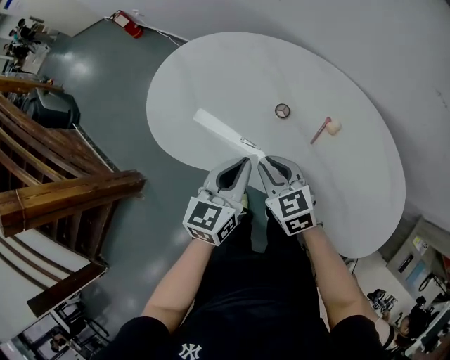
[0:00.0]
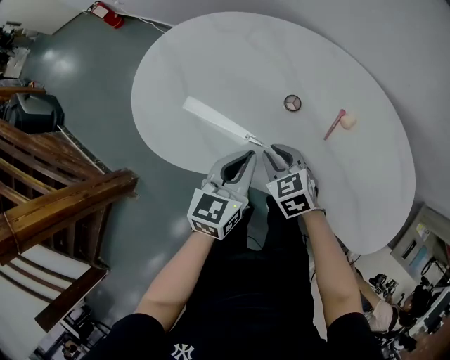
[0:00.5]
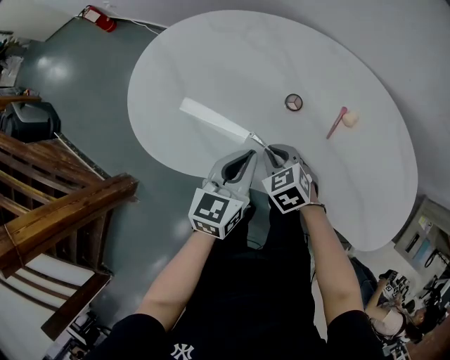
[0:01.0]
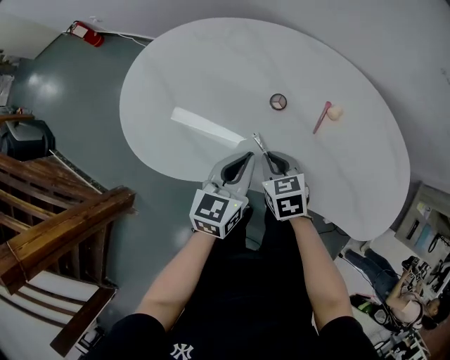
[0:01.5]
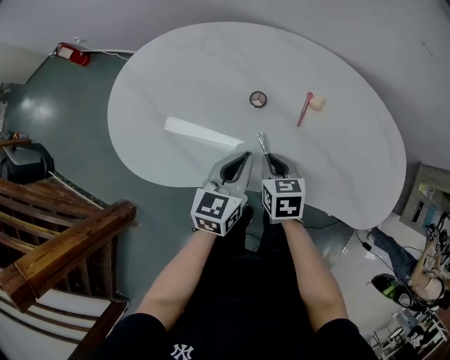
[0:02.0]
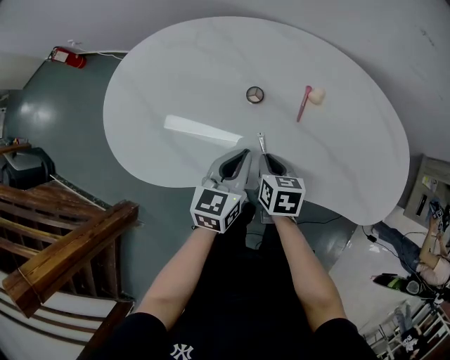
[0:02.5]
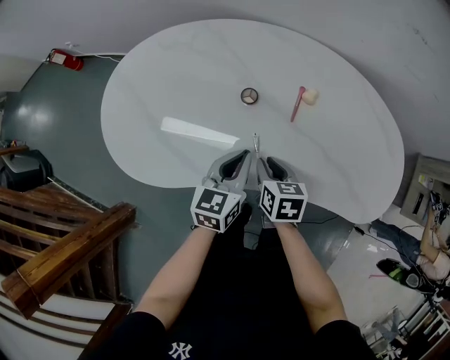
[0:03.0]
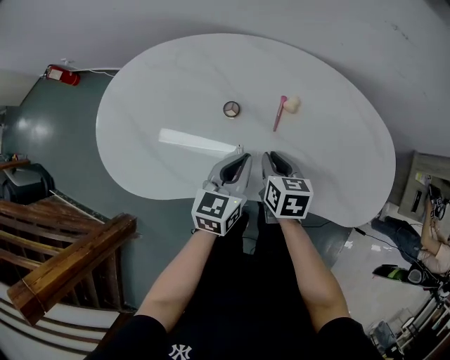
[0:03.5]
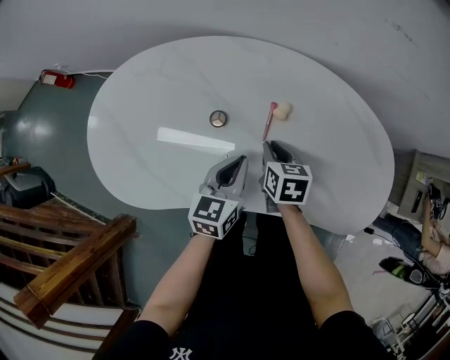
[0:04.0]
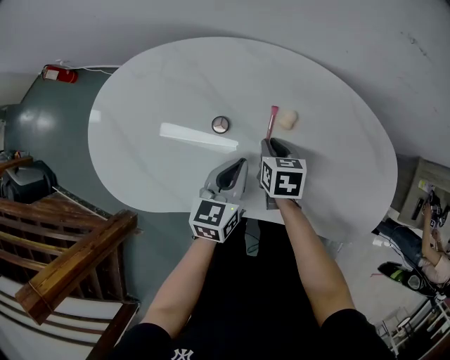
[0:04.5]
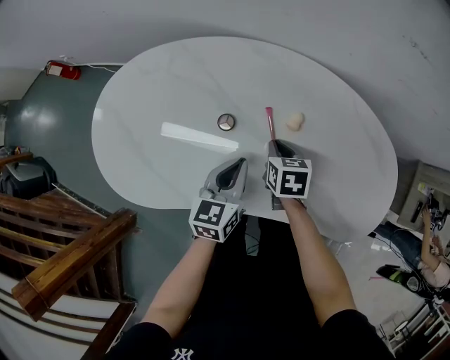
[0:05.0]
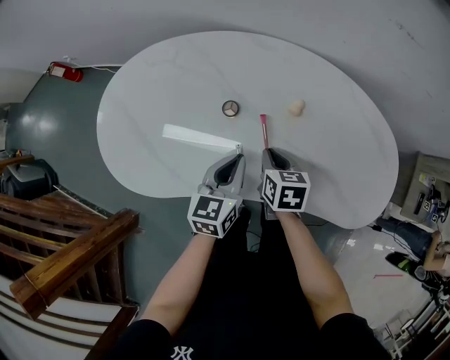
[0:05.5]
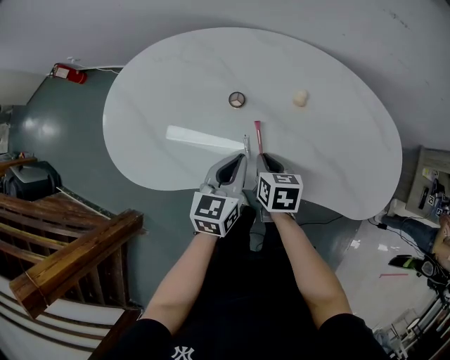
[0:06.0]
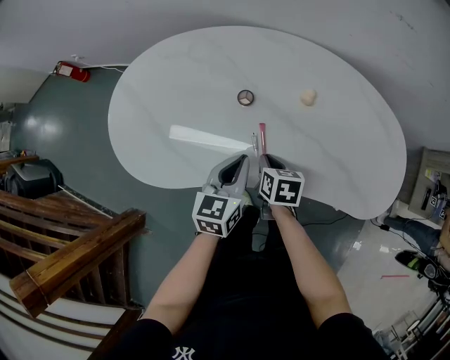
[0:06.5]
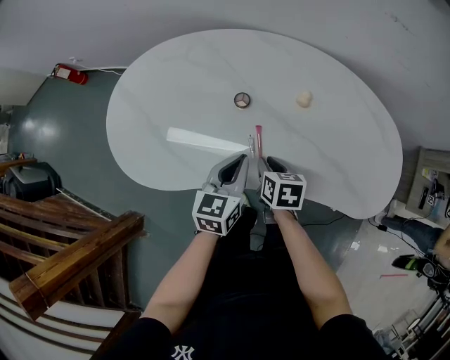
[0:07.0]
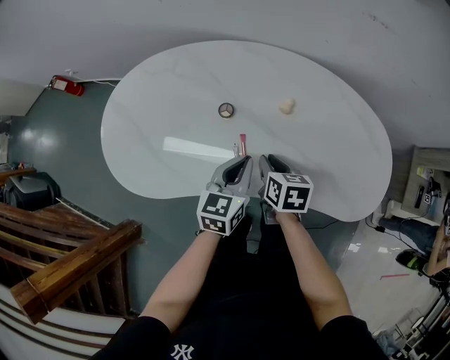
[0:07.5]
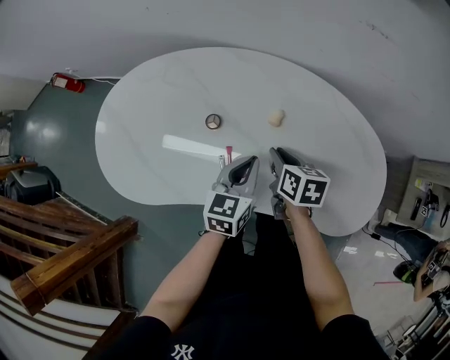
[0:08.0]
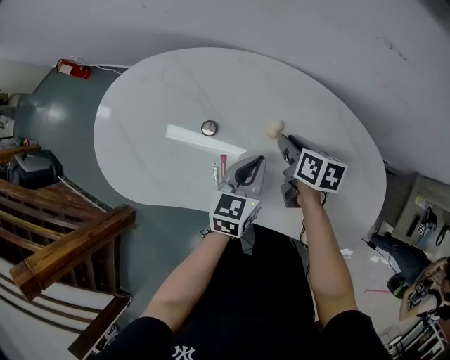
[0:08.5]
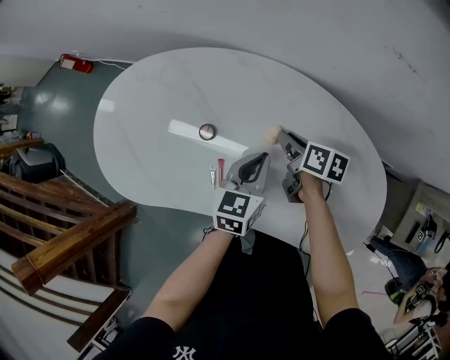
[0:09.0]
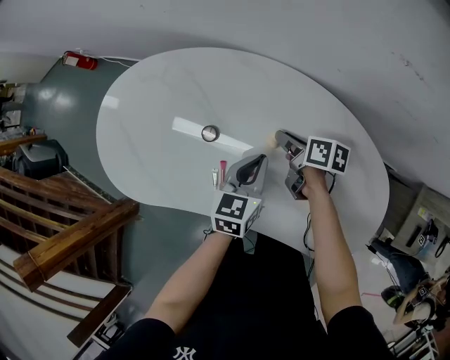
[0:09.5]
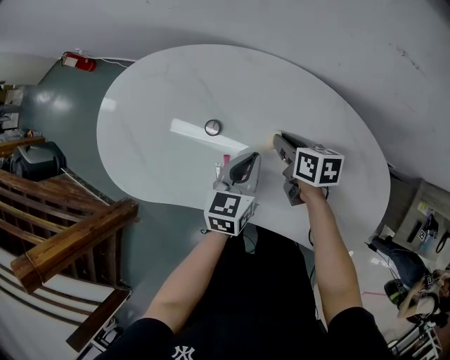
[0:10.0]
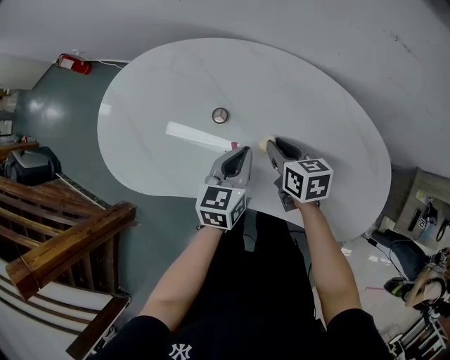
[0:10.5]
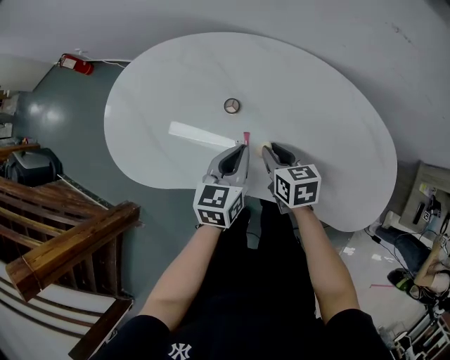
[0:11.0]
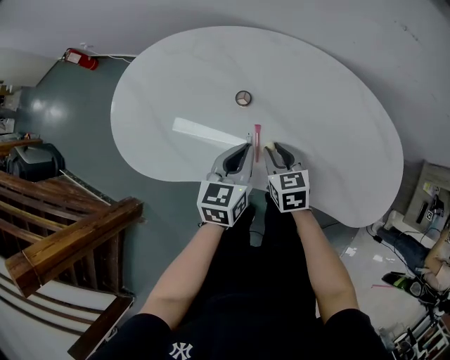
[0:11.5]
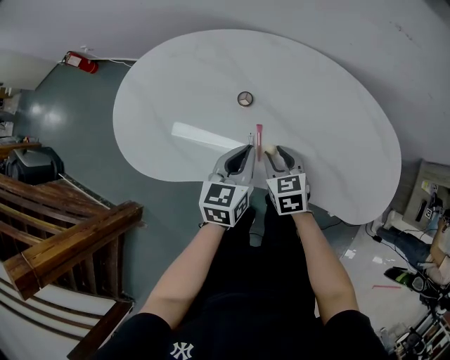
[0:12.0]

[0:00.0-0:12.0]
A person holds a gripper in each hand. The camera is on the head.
0:00.0 to 0:02.0: The two grippers go some 10 cm downward. The right gripper swivels approximately 40 degrees.
0:02.0 to 0:04.0: Both grippers travel together to the right and forward, approximately 10 cm.
0:04.0 to 0:06.0: The right gripper is displaced backward and to the left by roughly 10 cm, while the left gripper heads backward, covering approximately 5 cm.
0:06.0 to 0:08.0: The two grippers go approximately 15 cm to the right and forward.
0:08.0 to 0:10.0: The right gripper shifts about 10 cm forward. Meanwhile the left gripper is displaced forward by about 5 cm.
0:10.0 to 0:12.0: The left gripper shifts about 15 cm to the left and backward, while the right gripper moves backward and to the left, roughly 20 cm, and turns by approximately 40 degrees.

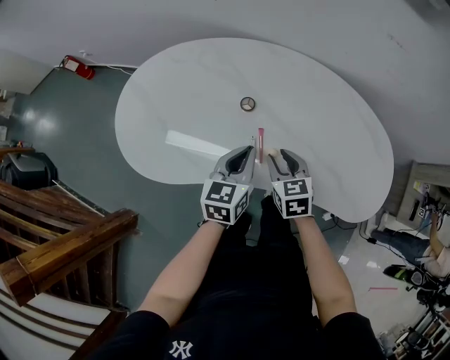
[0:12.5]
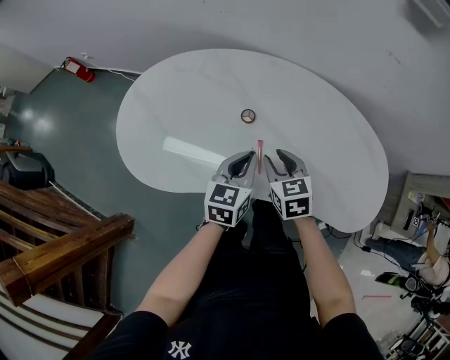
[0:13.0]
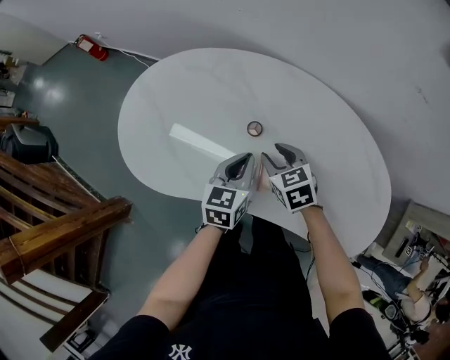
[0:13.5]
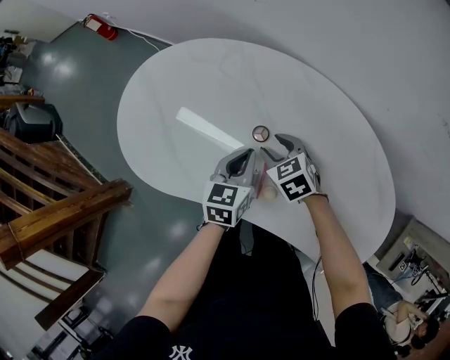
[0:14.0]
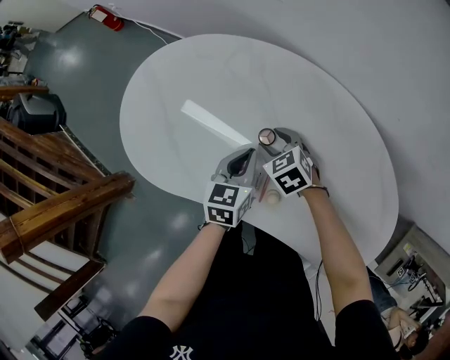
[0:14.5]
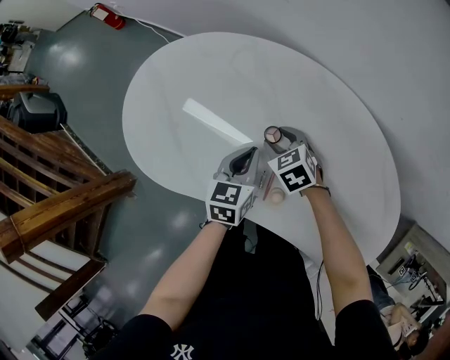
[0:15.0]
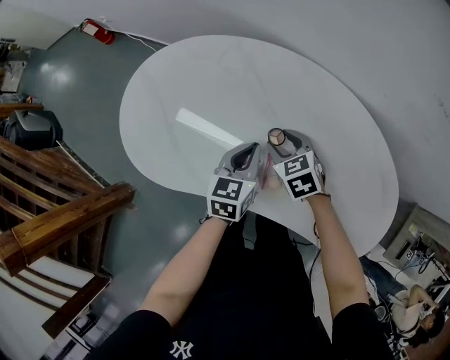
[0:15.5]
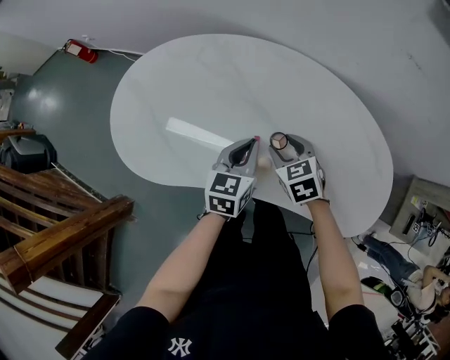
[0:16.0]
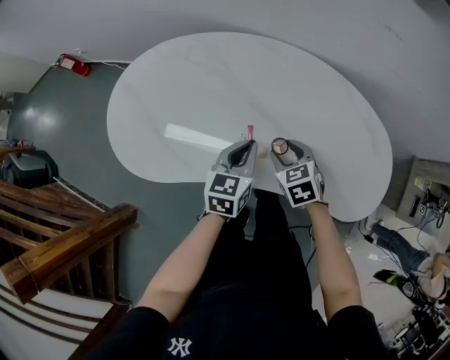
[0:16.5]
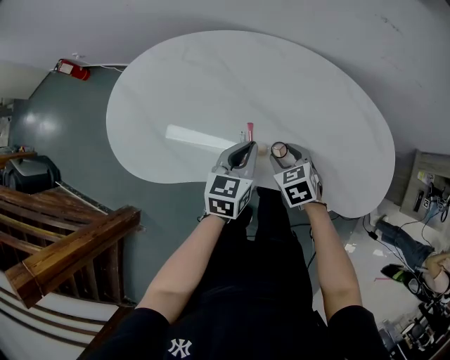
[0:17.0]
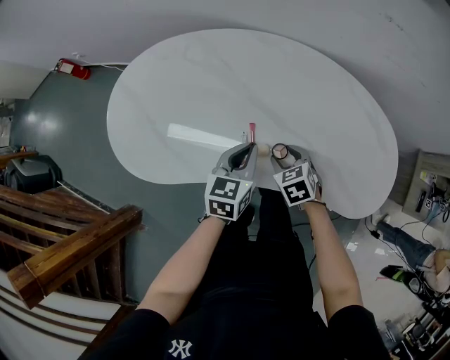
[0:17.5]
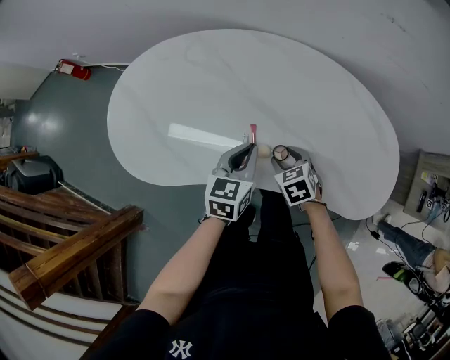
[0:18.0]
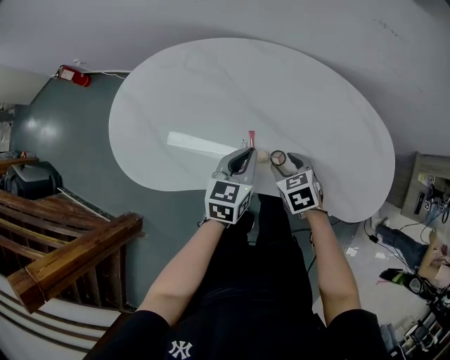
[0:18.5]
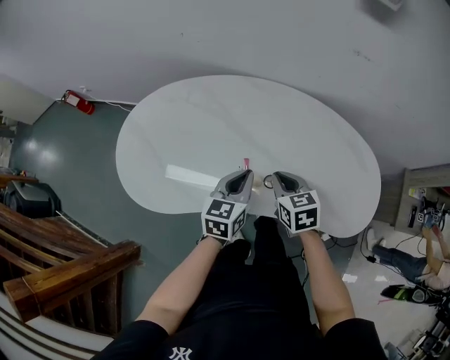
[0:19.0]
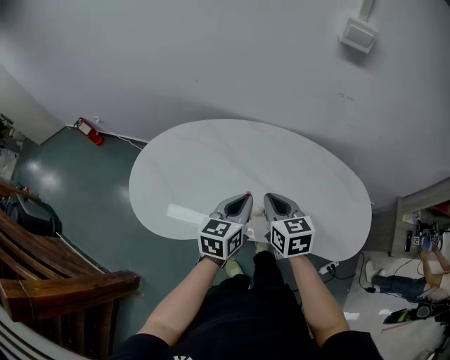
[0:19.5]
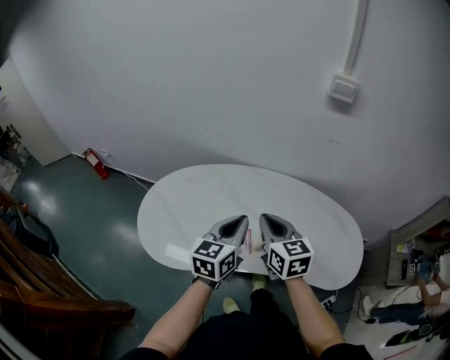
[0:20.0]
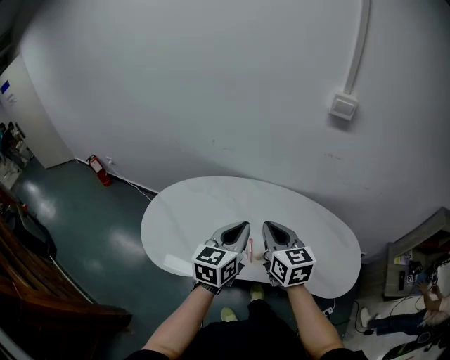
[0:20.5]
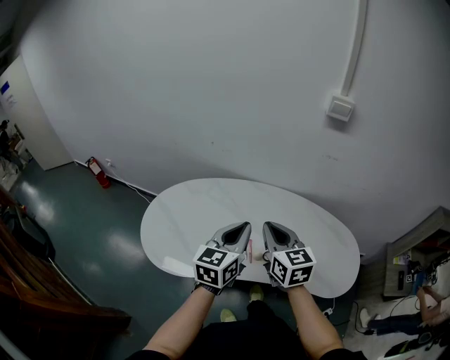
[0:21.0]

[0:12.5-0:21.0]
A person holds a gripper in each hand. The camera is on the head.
0:12.5 to 0:14.5: The left gripper changes place by approximately 15 cm. The right gripper ends up roughly 20 cm from where it was, and swivels about 40 degrees.
0:14.5 to 0:16.5: The left gripper goes some 10 cm backward and to the right, and rotates approximately 20 degrees, while the right gripper goes roughly 20 cm backward and to the right, and changes its angle by about 30 degrees.
0:16.5 to 0:19.0: The right gripper is displaced upward by some 5 cm, swivels about 20 degrees, and closes its fingers.
0:19.0 to 0:21.0: Both grippers travel together upward, some 25 cm. The right gripper swivels roughly 30 degrees.

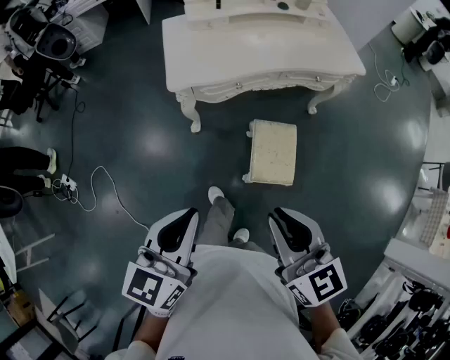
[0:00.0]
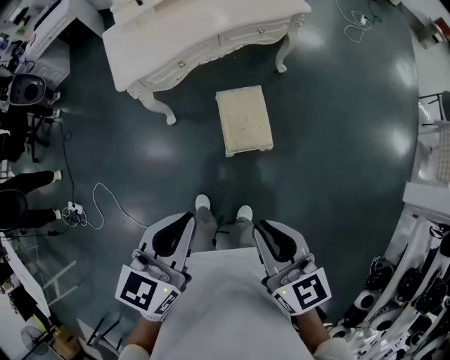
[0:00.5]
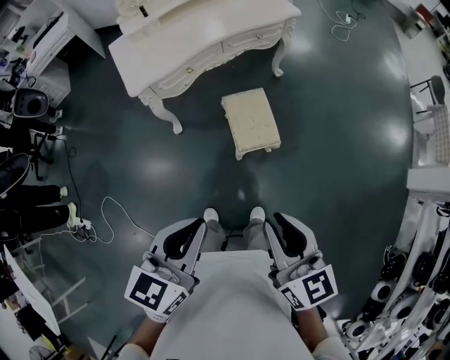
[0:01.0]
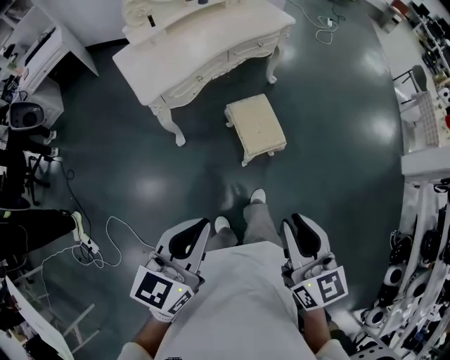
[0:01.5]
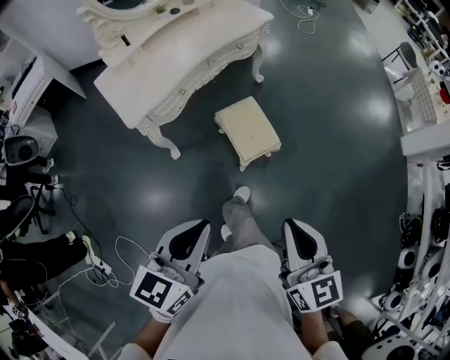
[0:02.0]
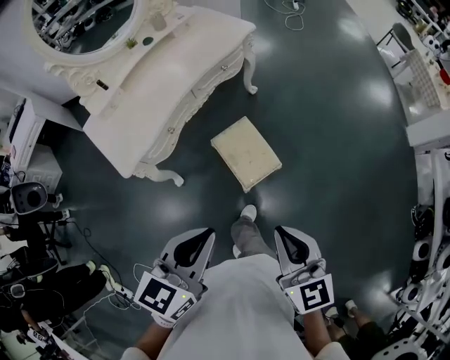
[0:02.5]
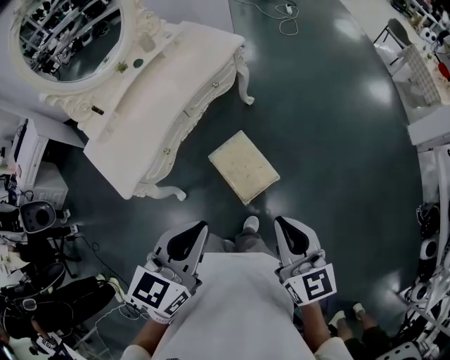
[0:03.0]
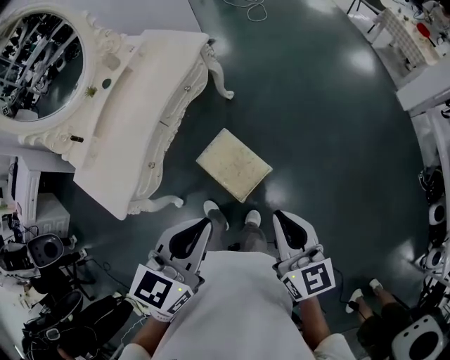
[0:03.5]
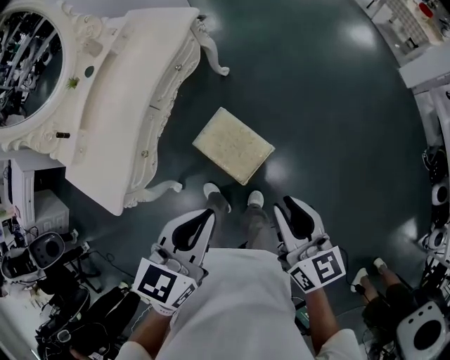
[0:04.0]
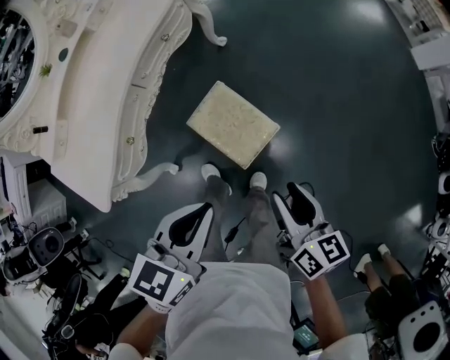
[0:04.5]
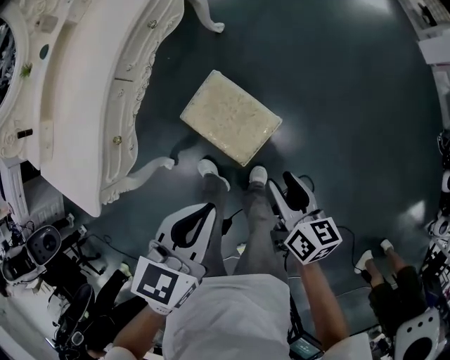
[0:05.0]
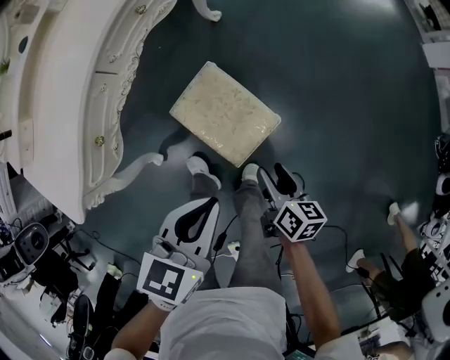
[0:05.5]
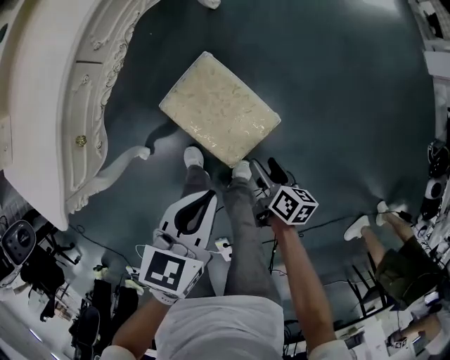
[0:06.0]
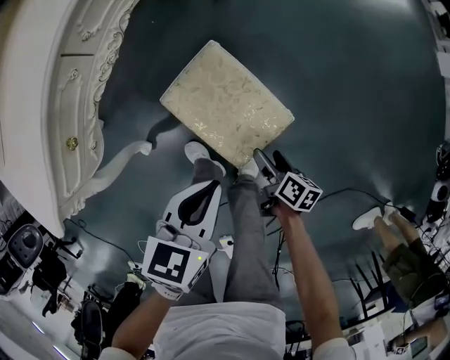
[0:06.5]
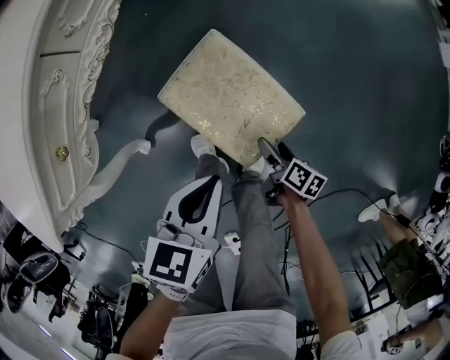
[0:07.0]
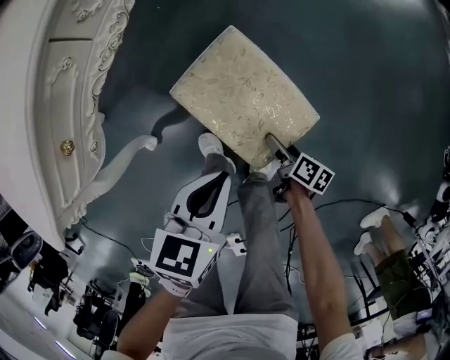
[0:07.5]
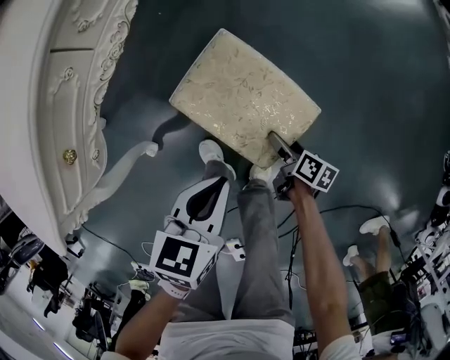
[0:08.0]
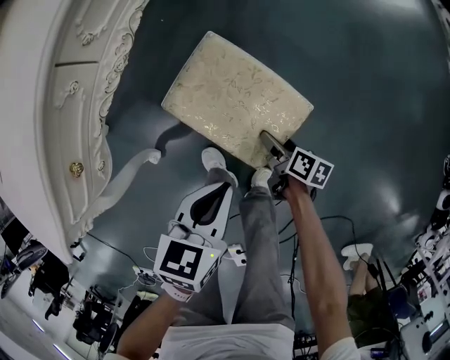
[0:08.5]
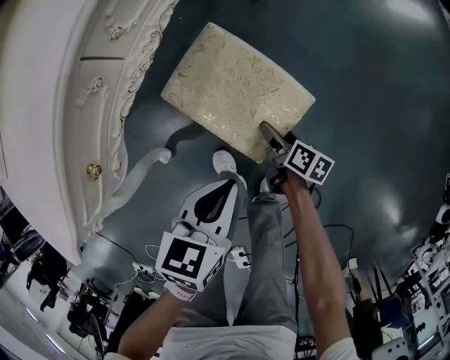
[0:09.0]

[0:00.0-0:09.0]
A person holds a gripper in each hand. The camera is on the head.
0:00.0 to 0:02.0: The right gripper moves approximately 15 cm, and turns by some 40 degrees; the left gripper turns by approximately 30 degrees.
0:02.0 to 0:04.5: The grippers both shift forward and downward by some 35 cm. The left gripper rotates approximately 30 degrees. The right gripper rotates approximately 40 degrees, and opens its fingers.
0:04.5 to 0:07.0: The left gripper shifts approximately 30 cm downward. The right gripper is displaced downward by approximately 50 cm, swivels some 40 degrees, and opens up.
0:07.0 to 0:09.0: The right gripper shifts approximately 15 cm forward and to the left, while the left gripper goes approximately 5 cm to the left.
